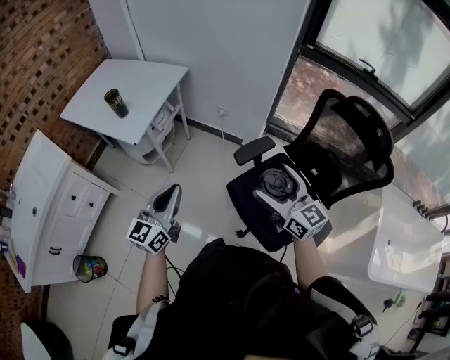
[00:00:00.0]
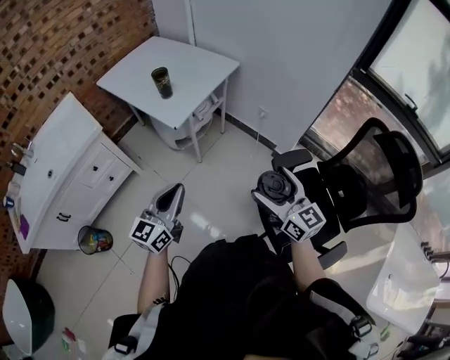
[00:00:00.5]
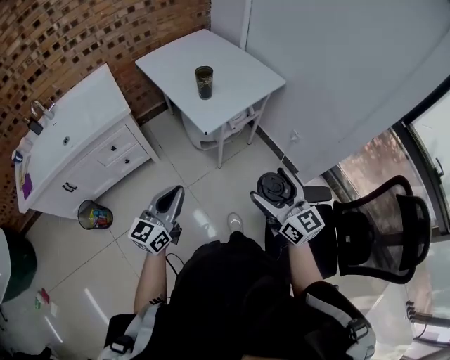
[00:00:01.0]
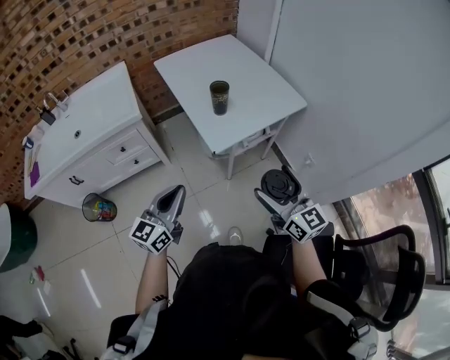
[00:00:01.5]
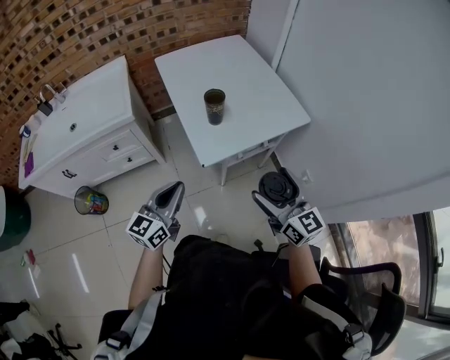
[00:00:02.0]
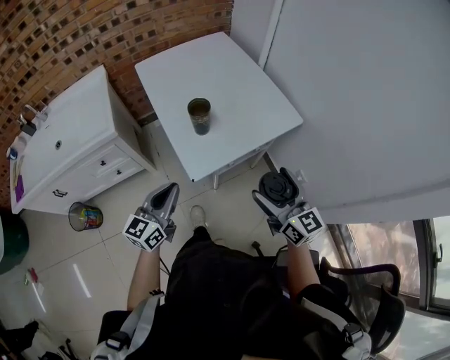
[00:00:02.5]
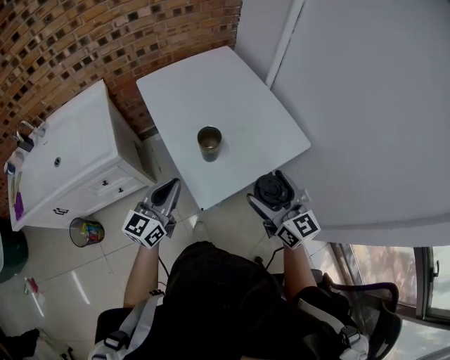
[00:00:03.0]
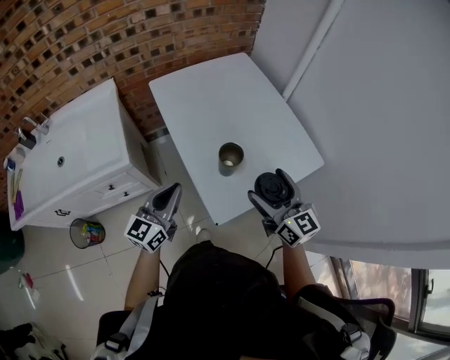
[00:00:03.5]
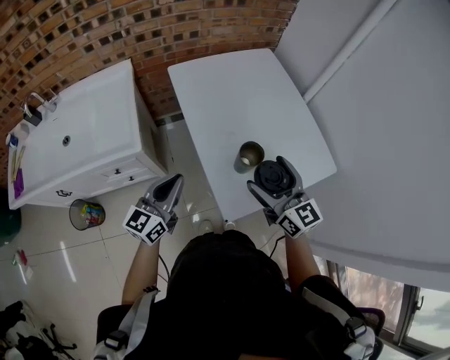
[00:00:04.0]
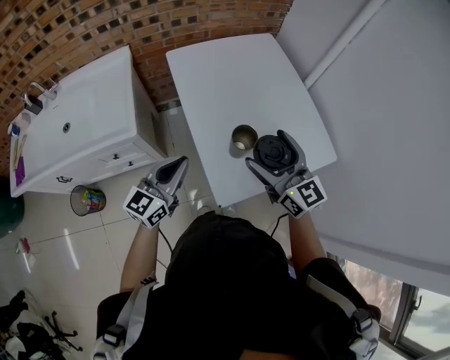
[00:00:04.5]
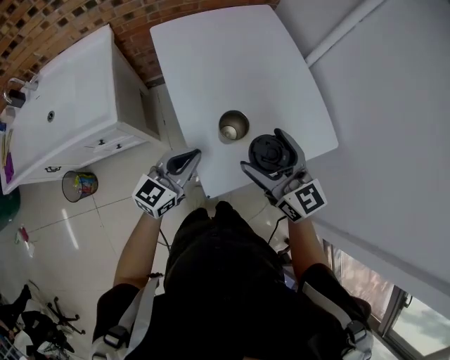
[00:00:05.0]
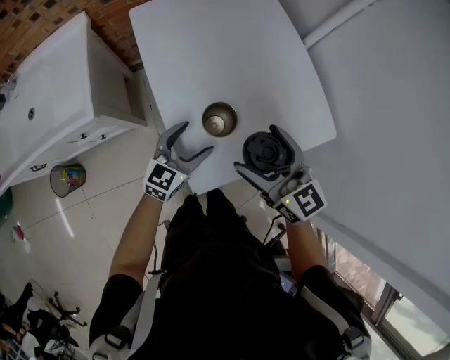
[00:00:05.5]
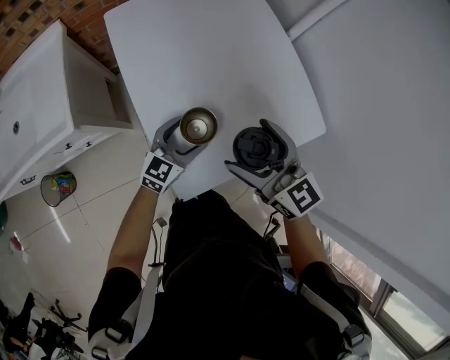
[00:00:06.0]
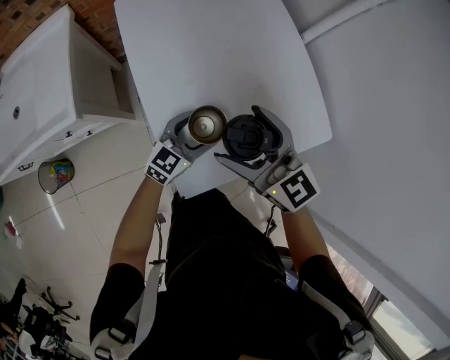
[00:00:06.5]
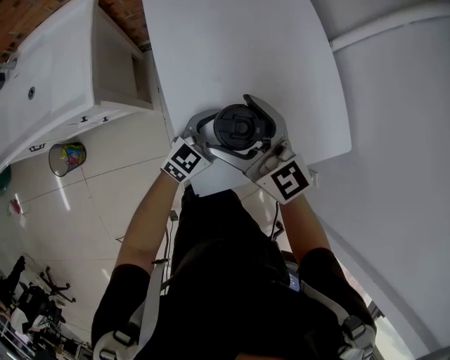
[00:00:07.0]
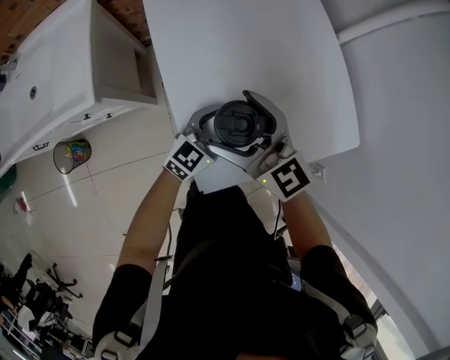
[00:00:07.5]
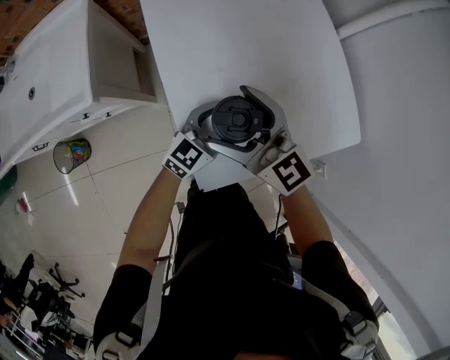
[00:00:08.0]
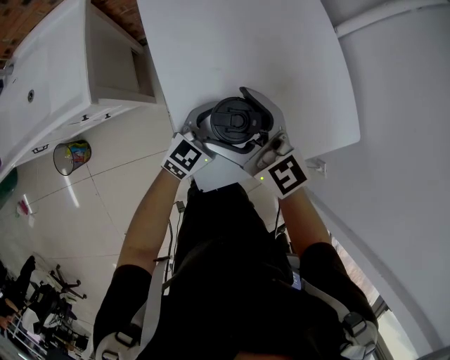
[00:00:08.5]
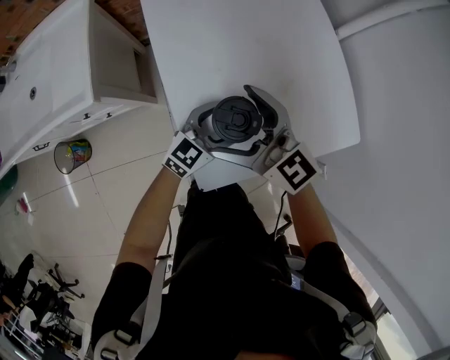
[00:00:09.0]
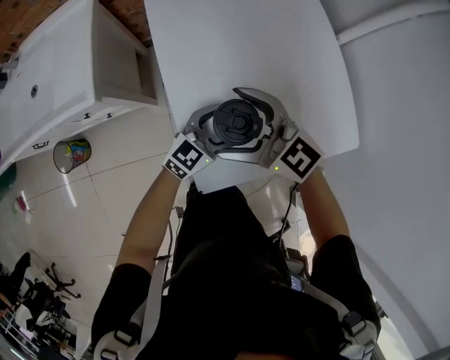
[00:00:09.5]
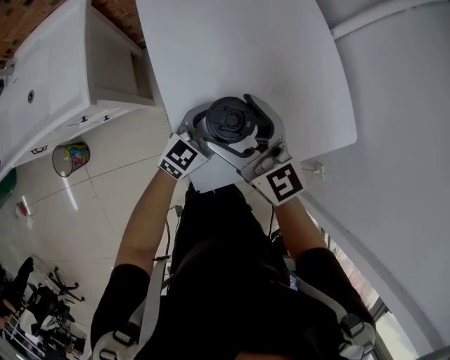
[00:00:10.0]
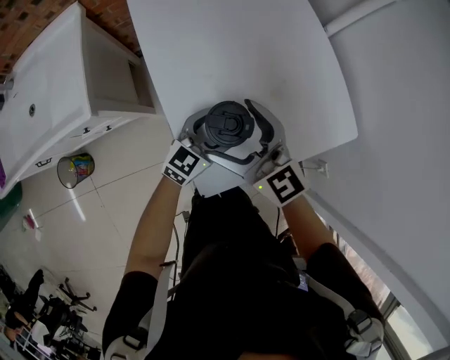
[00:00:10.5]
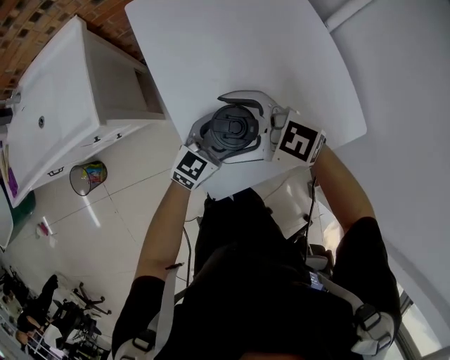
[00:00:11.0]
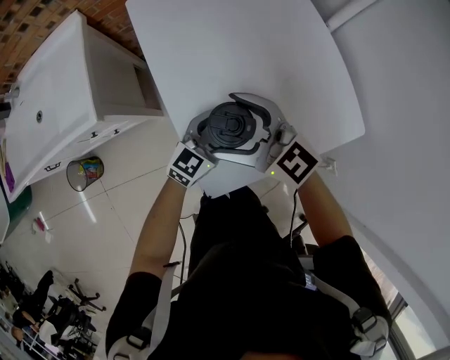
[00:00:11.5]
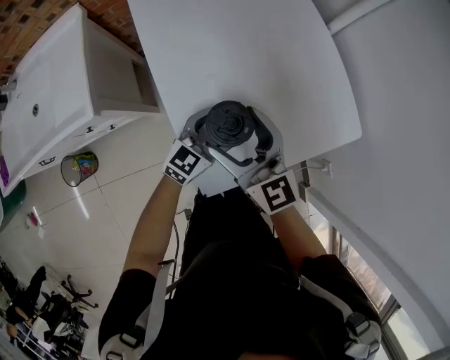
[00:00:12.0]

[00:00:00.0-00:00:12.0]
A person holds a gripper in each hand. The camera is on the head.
00:00:00.0 to 00:00:02.0: The right gripper ends up approximately 40 cm from where it was, and rotates approximately 40 degrees. Meanwhile the left gripper ends up about 30 cm from where it was, and swivels about 40 degrees.
00:00:02.0 to 00:00:04.0: The grippers both shift forward and to the left by approximately 30 cm.
00:00:04.0 to 00:00:06.0: The left gripper heads to the right, downward and forward, covering approximately 30 cm, rotates about 30 degrees, and opens up; the right gripper moves to the right and downward, approximately 10 cm.
00:00:06.0 to 00:00:08.0: The right gripper moves to the left, some 10 cm.

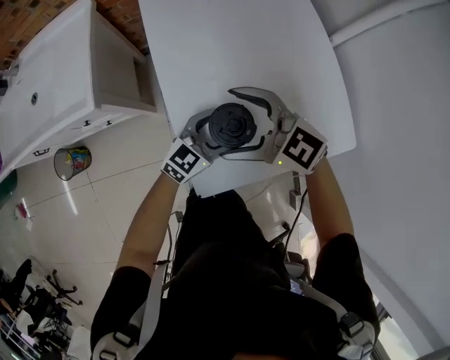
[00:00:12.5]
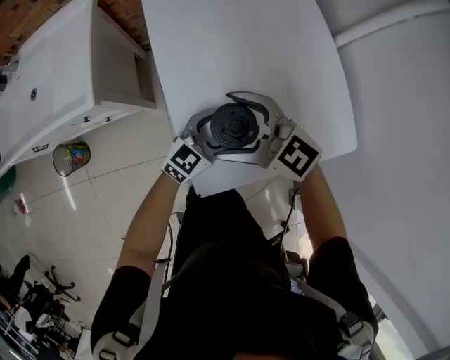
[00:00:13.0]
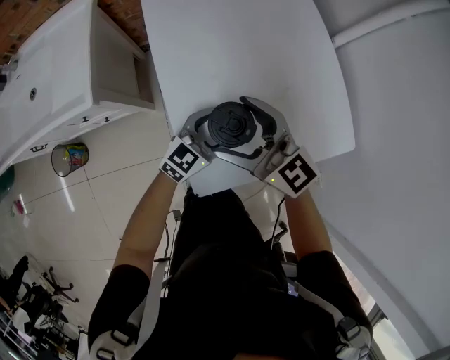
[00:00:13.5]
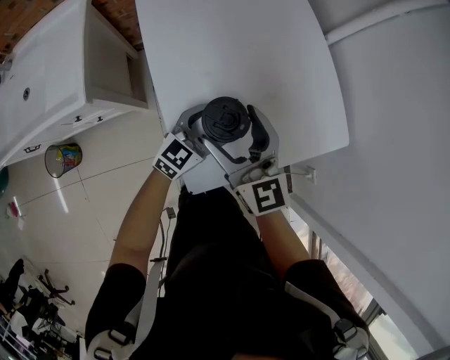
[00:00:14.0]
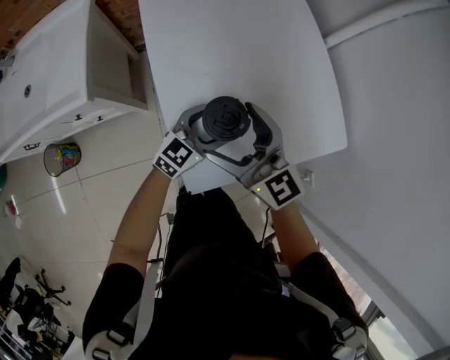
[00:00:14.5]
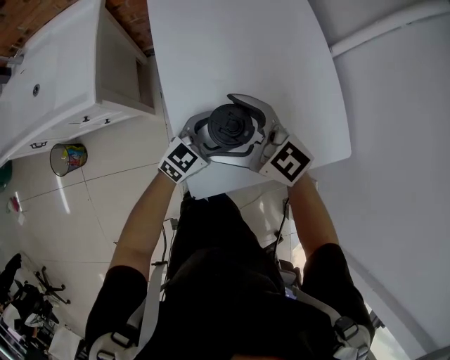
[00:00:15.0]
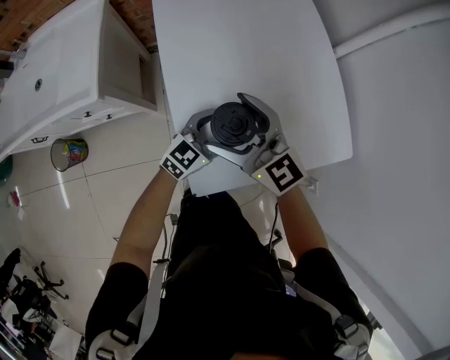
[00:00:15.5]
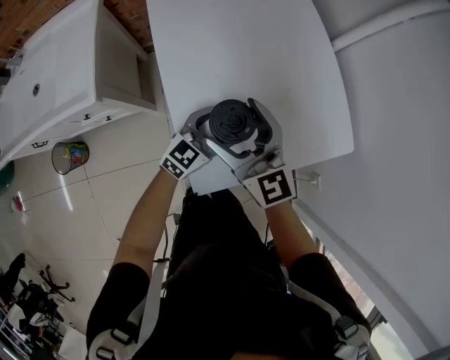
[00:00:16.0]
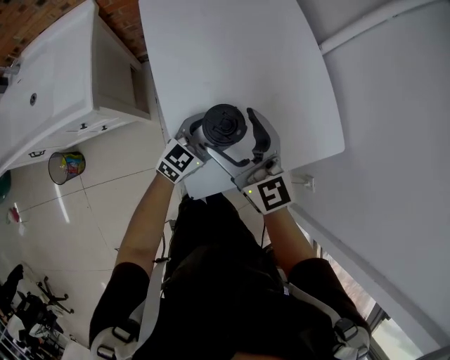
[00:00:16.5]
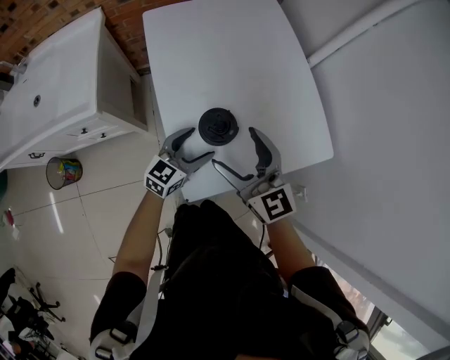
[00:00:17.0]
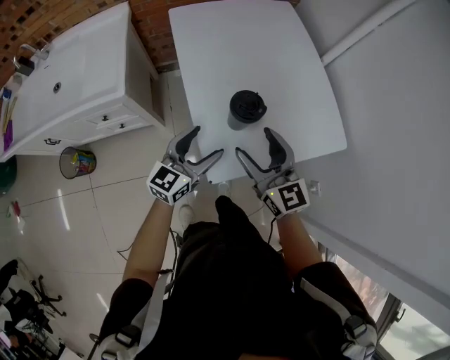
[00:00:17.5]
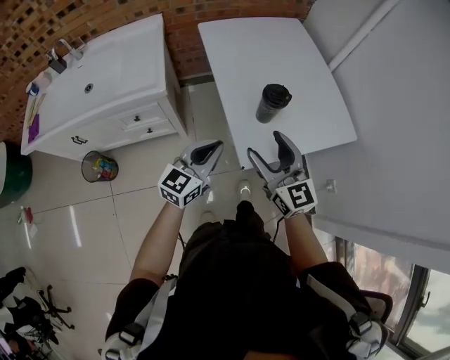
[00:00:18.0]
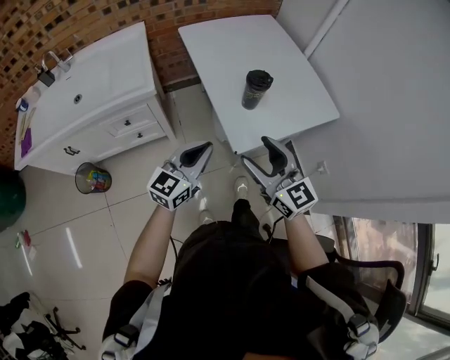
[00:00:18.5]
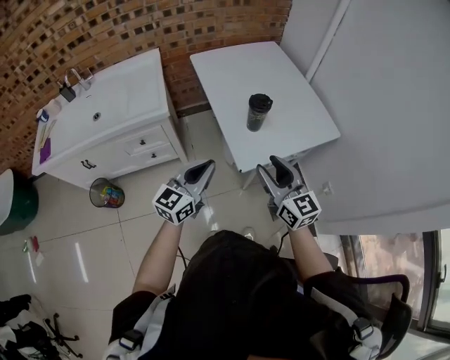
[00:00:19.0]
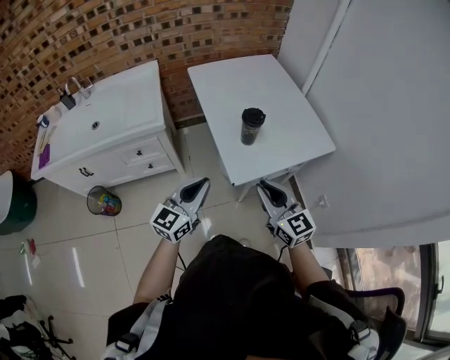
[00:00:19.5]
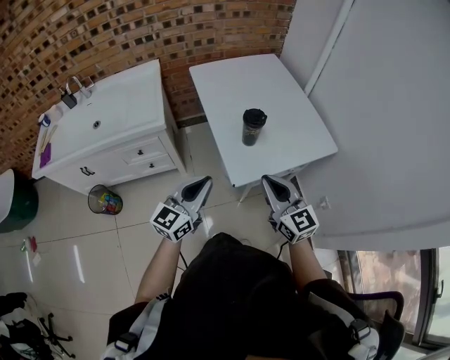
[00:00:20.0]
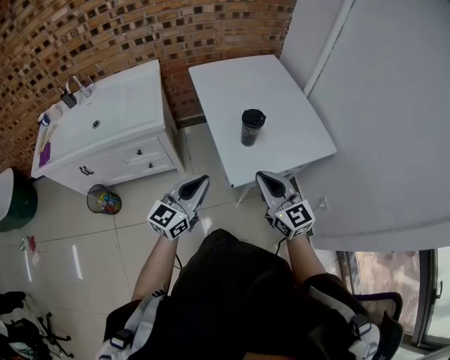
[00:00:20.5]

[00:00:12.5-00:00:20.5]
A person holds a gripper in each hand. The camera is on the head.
00:00:12.5 to 00:00:14.5: The right gripper turns by about 40 degrees.
00:00:16.5 to 00:00:18.5: The left gripper goes approximately 35 cm backward, upward and to the left, and closes up. The right gripper travels backward by approximately 25 cm.
00:00:18.5 to 00:00:20.5: The right gripper moves to the right, approximately 5 cm, and closes its fingers.

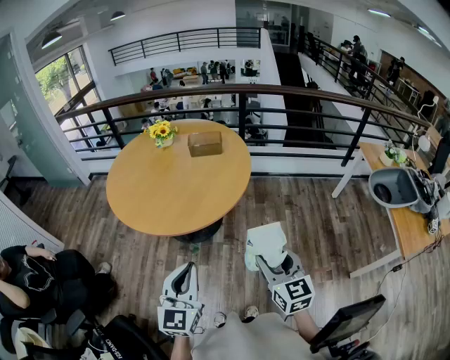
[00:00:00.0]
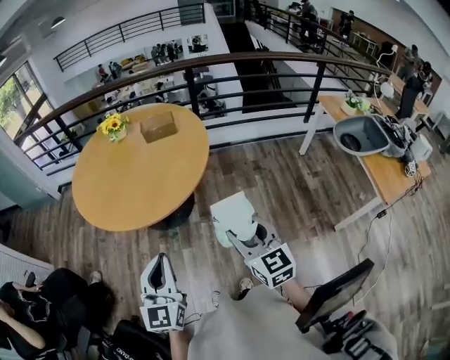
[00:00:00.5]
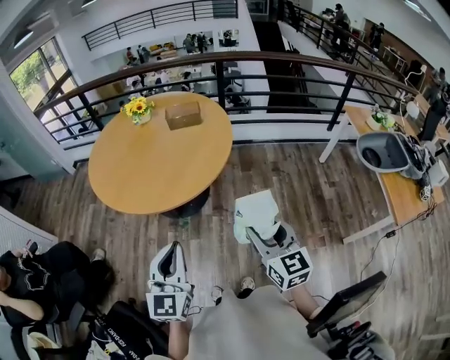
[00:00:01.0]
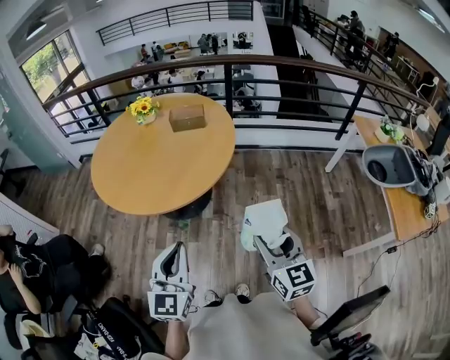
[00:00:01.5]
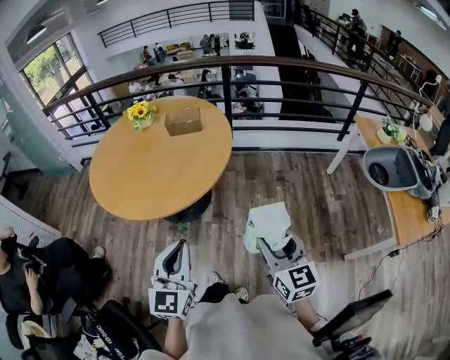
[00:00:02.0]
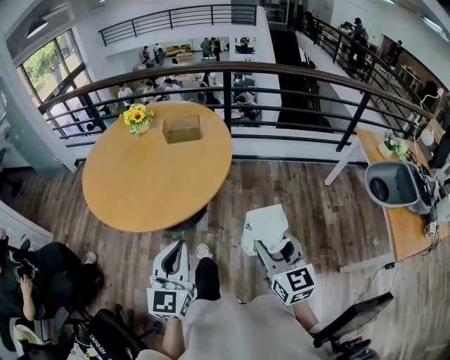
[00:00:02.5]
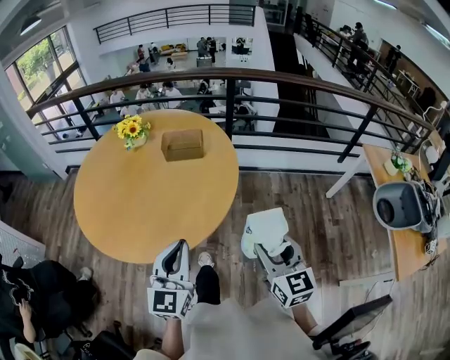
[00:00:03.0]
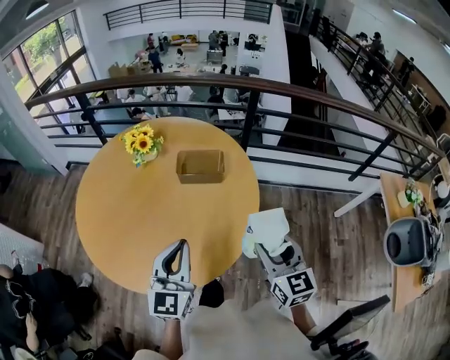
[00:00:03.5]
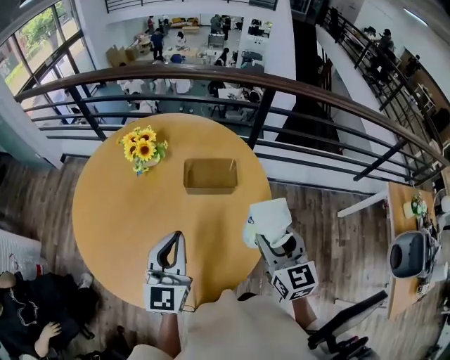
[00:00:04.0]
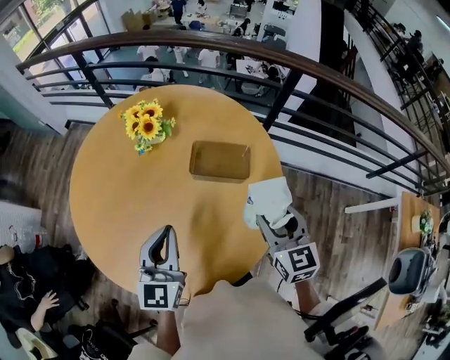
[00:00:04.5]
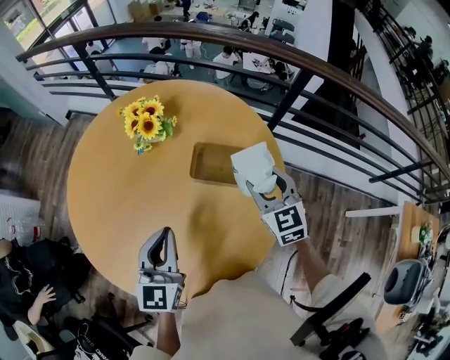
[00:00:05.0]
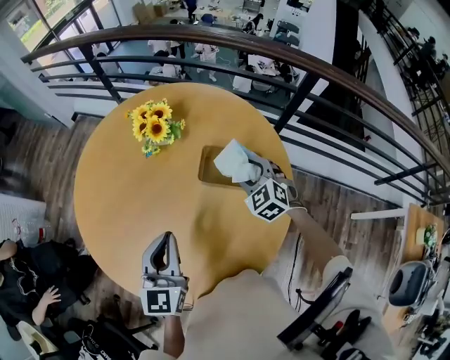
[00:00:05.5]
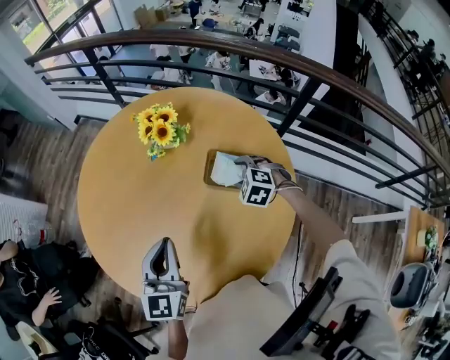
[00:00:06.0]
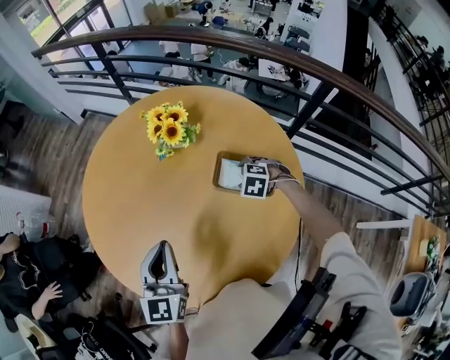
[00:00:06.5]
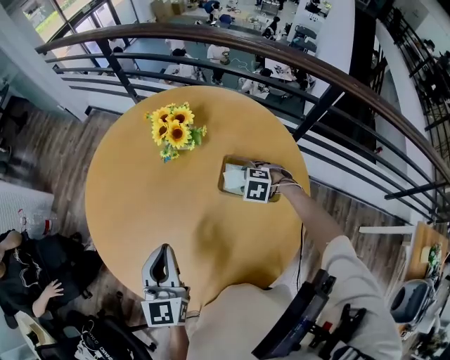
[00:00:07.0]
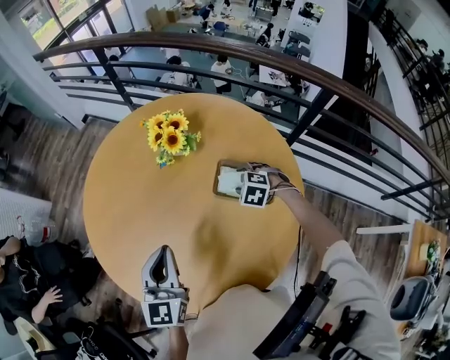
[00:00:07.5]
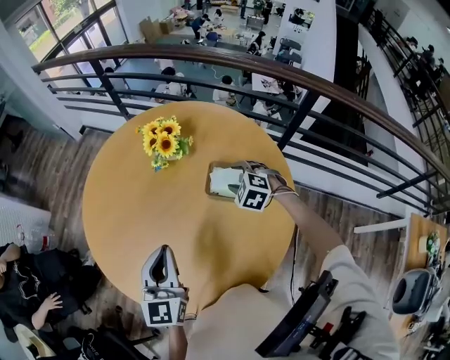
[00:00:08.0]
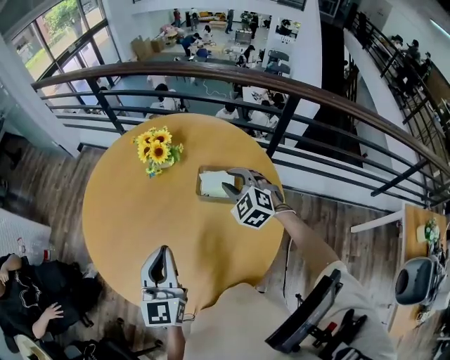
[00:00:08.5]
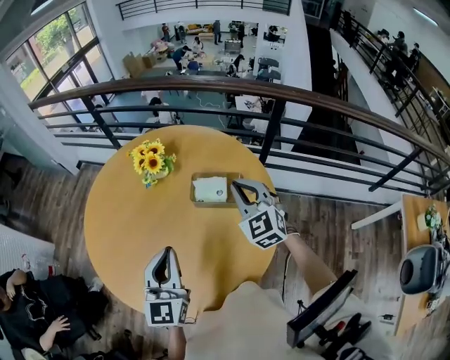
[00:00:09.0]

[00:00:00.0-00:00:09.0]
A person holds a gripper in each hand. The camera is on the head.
00:00:00.0 to 00:00:02.0: The grippers both shift to the right by some 5 cm.
00:00:02.0 to 00:00:04.5: Both grippers are carried forward, some 50 cm.
00:00:04.5 to 00:00:07.0: The right gripper moves downward, some 20 cm, and points its fingers about 50 degrees further downward, while the left gripper changes place by about 5 cm.
00:00:07.0 to 00:00:09.0: The left gripper is displaced to the right by about 5 cm. The right gripper is displaced upward by some 25 cm, tips its fingers upward by roughly 60 degrees, and closes.
